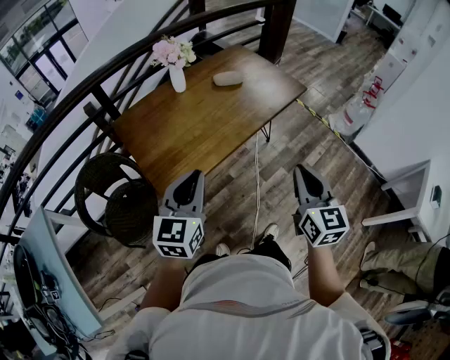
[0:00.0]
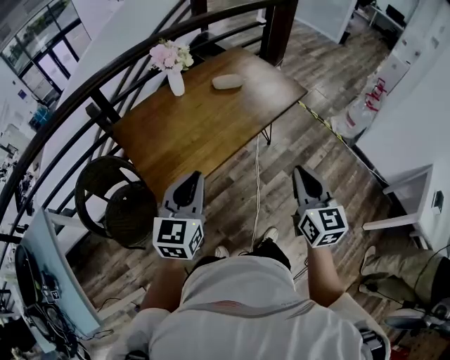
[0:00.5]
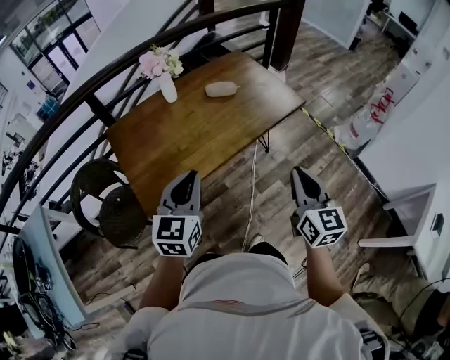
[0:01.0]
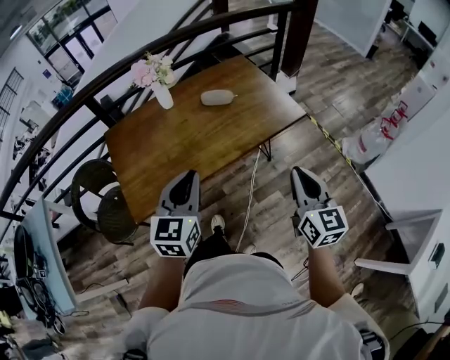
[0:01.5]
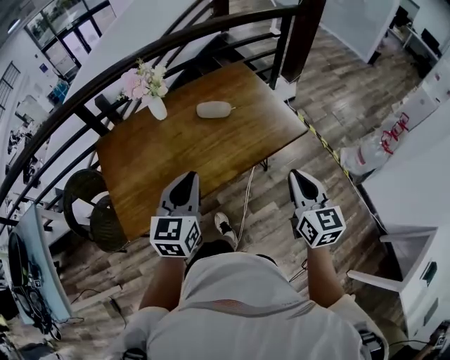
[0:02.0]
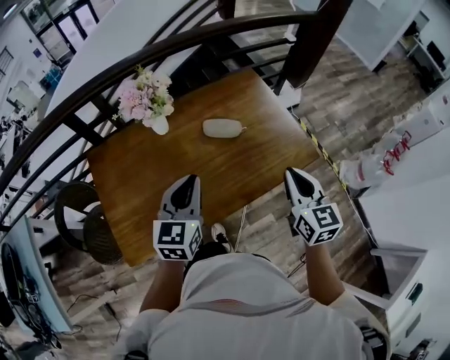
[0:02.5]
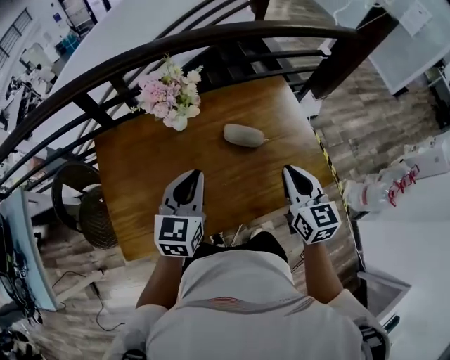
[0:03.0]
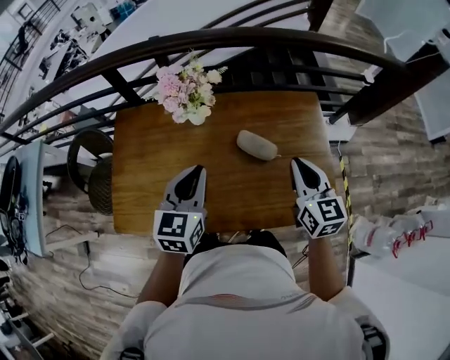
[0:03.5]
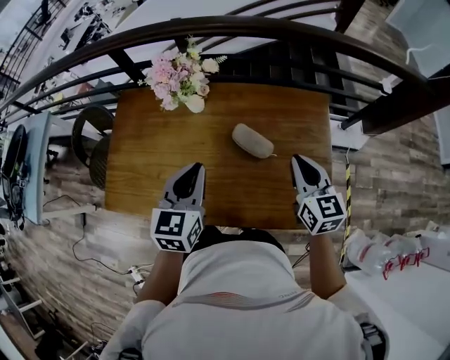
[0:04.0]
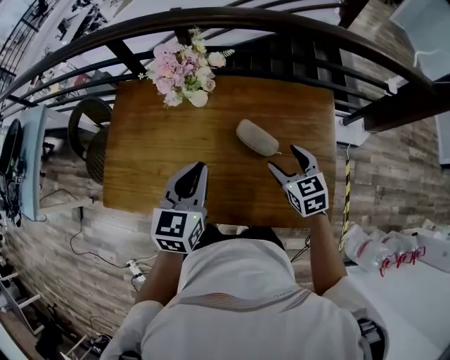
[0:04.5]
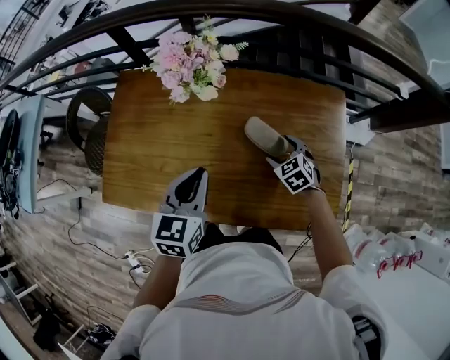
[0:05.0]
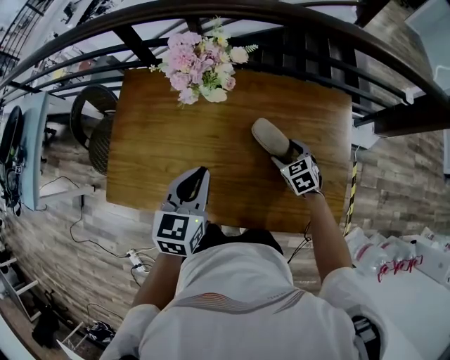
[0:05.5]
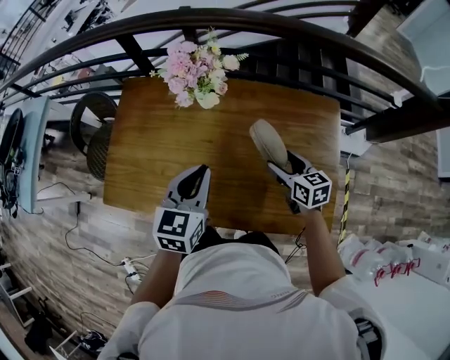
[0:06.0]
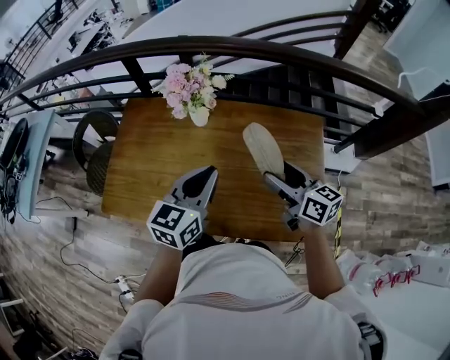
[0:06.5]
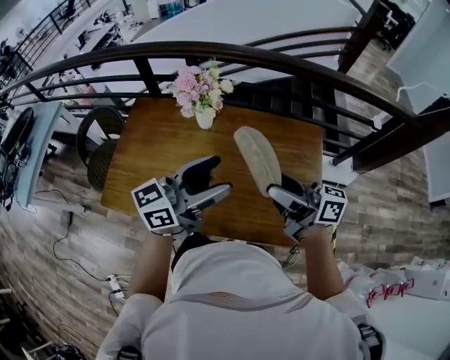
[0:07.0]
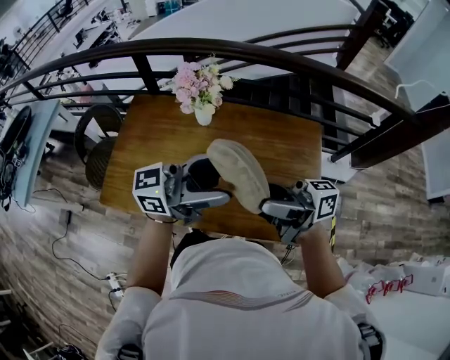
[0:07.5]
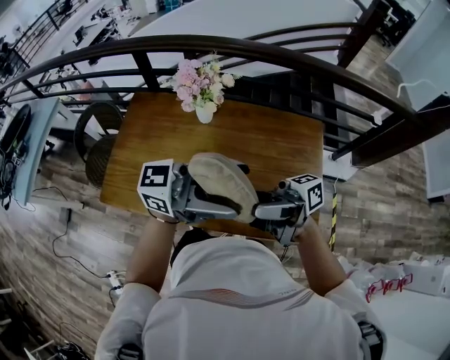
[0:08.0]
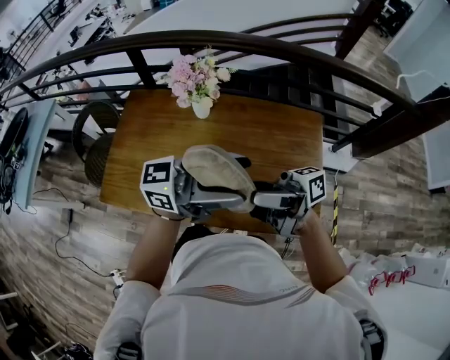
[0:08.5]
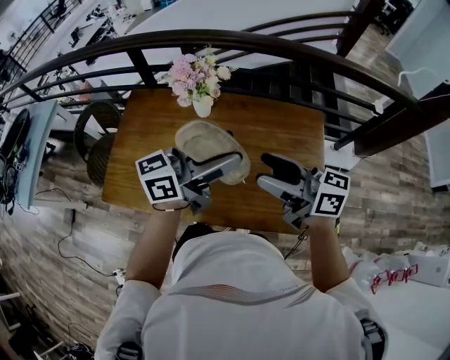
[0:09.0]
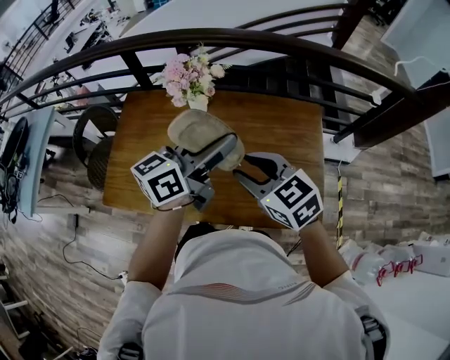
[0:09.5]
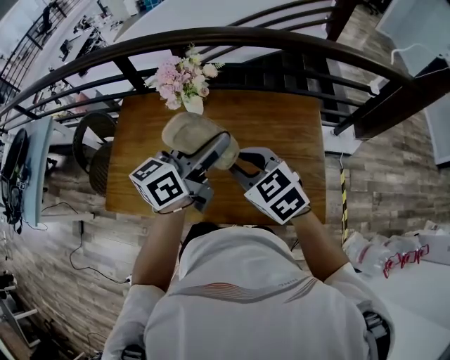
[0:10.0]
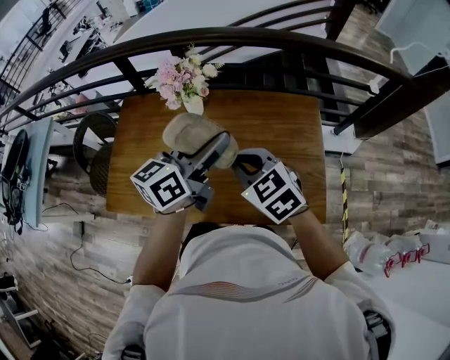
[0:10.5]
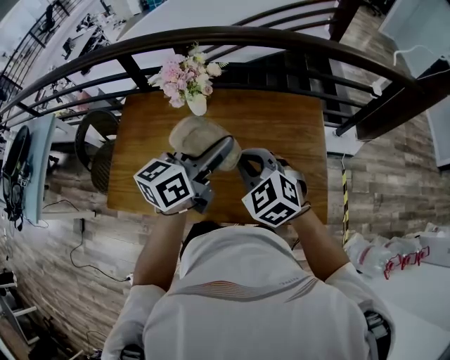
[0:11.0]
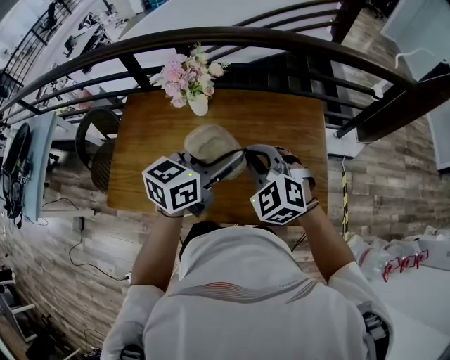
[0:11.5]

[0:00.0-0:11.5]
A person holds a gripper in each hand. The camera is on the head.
0:00.0 to 0:02.0: Both grippers travel together forward and to the right, roughly 30 cm.
0:02.0 to 0:04.0: The left gripper changes place by roughly 25 cm, and swivels roughly 30 degrees; the right gripper changes place by some 40 cm, and turns by some 40 degrees.
0:04.0 to 0:06.0: The right gripper shifts roughly 15 cm downward and to the left, swivels some 20 degrees, and opens up.
0:06.0 to 0:07.5: The right gripper goes about 25 cm upward, and points its fingers about 50 degrees further upward. The left gripper shifts some 15 cm upward, points its fingers approximately 50 degrees further upward, and opens its fingers.
0:07.5 to 0:09.5: The left gripper shifts by roughly 10 cm, and changes its angle by approximately 30 degrees. The right gripper heads downward, covering some 5 cm, angles its fingers downward, by roughly 50 degrees, and closes.
0:09.5 to 0:11.5: The left gripper shifts by some 5 cm, and changes its angle by approximately 20 degrees; the right gripper turns by some 40 degrees, and closes up.

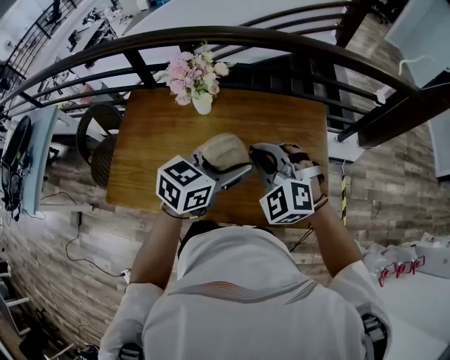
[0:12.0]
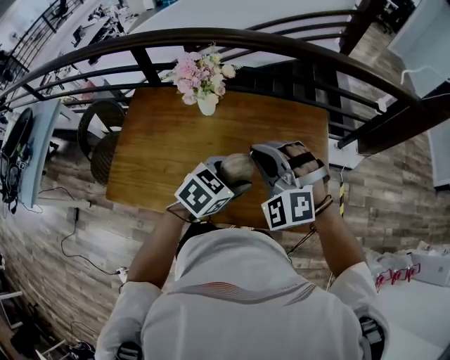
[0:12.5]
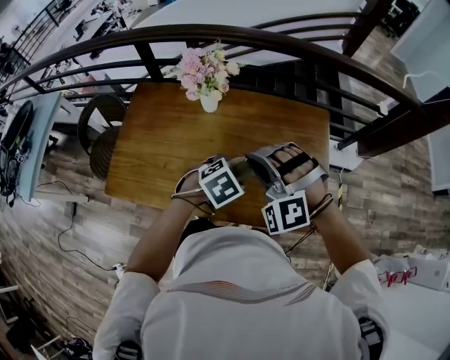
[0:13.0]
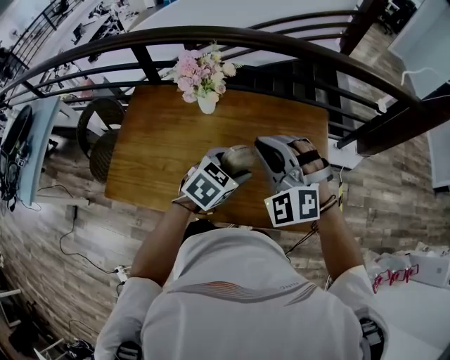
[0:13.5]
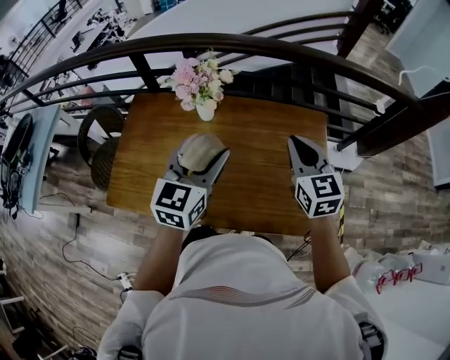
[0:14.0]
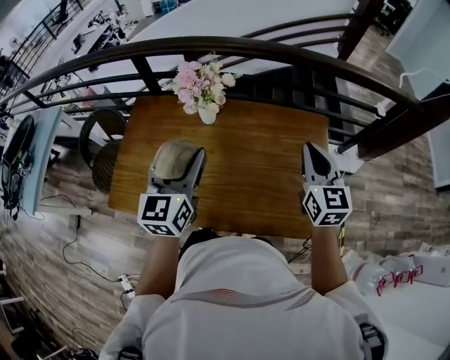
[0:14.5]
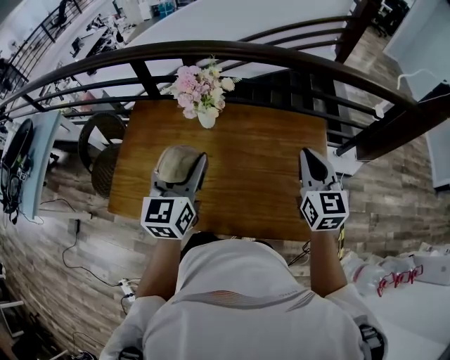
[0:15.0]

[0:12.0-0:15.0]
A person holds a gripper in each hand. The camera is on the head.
0:12.0 to 0:13.5: The left gripper goes some 10 cm downward, and changes its angle by approximately 20 degrees.
0:13.5 to 0:15.0: The left gripper shifts some 20 cm to the left and upward, and tips its fingers upward by about 30 degrees; the right gripper goes about 15 cm to the right, and twists approximately 60 degrees clockwise, seen from behind.

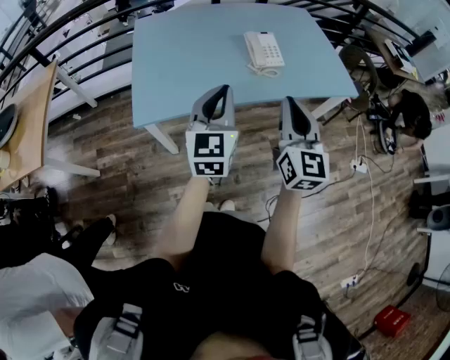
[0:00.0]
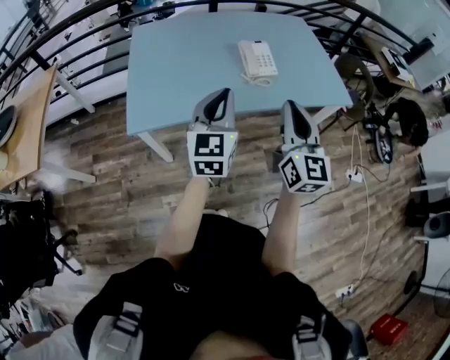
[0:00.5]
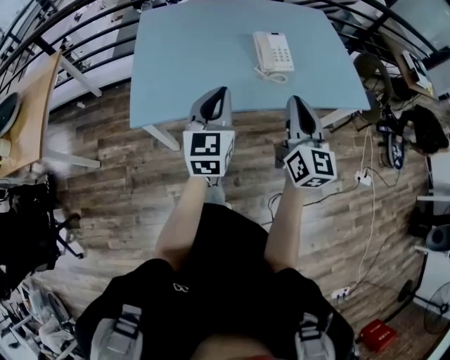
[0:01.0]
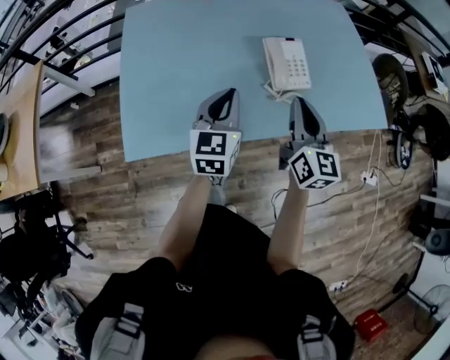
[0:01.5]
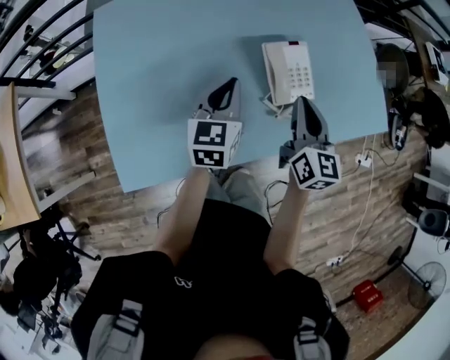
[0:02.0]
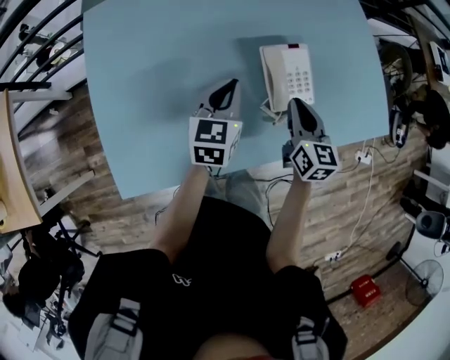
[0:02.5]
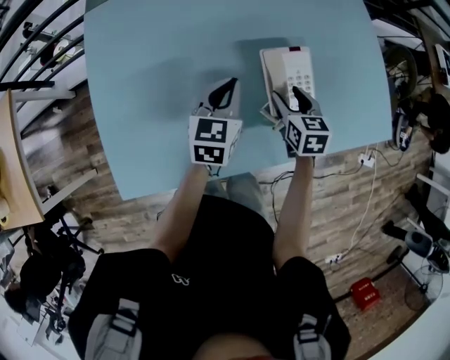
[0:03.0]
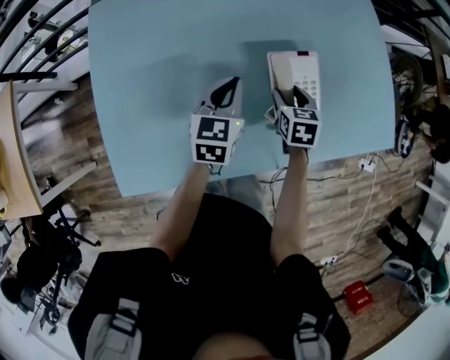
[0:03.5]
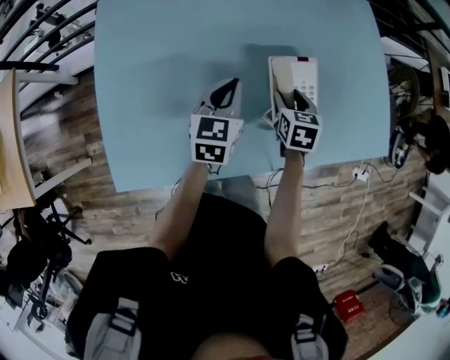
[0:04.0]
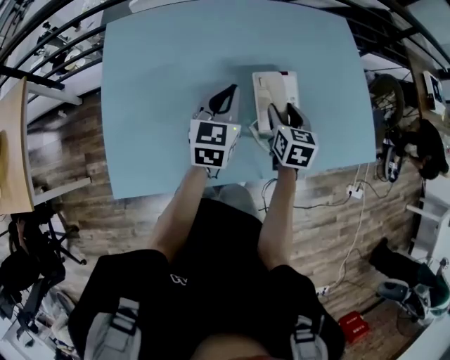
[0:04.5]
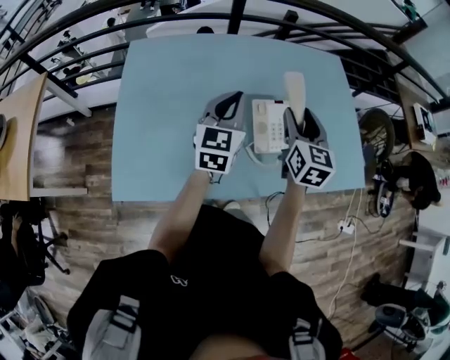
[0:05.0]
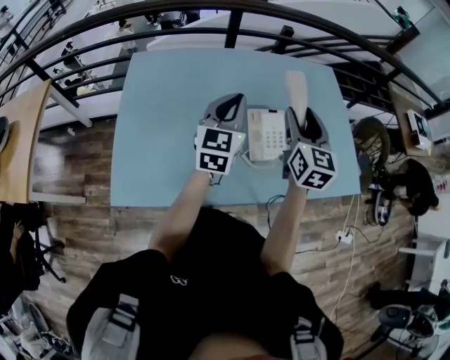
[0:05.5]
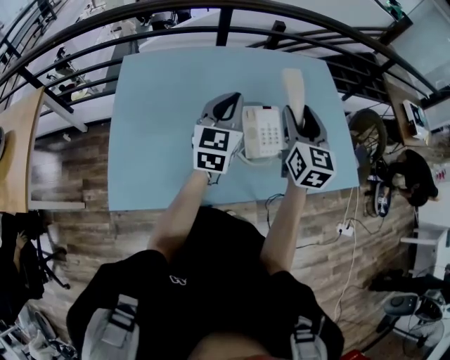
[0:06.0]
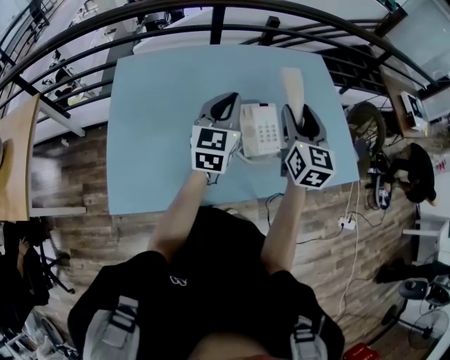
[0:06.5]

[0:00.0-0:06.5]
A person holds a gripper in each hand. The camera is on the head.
0:00.0 to 0:02.0: The two grippers travel together, forward, some 40 cm. The left gripper travels downward by about 15 cm, and swivels roughly 20 degrees. The right gripper turns by about 20 degrees.
0:02.0 to 0:04.5: The left gripper ends up about 5 cm from where it was. The right gripper heads forward and downward, covering approximately 10 cm, turns by some 20 degrees, and opens up.
0:04.5 to 0:06.5: The right gripper heads upward, covering roughly 20 cm, and swivels about 30 degrees. The left gripper heads upward, covering some 10 cm.

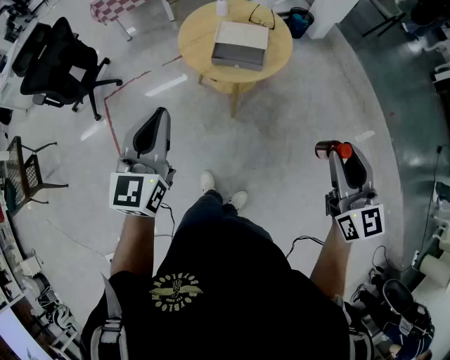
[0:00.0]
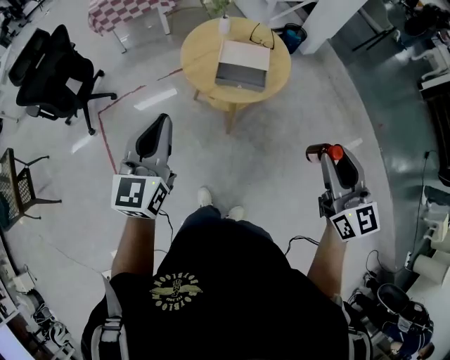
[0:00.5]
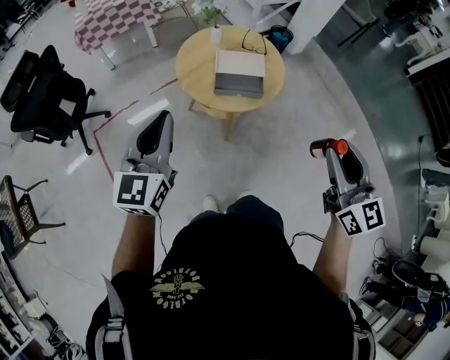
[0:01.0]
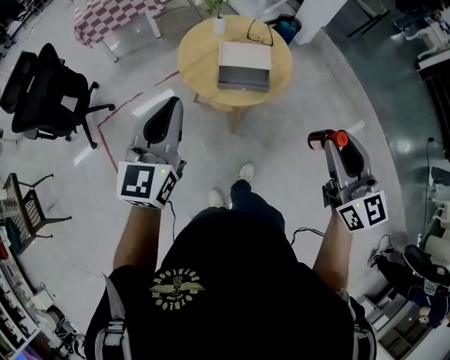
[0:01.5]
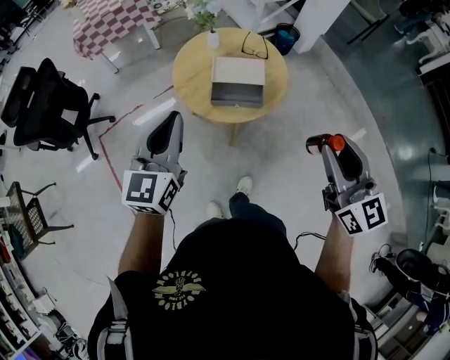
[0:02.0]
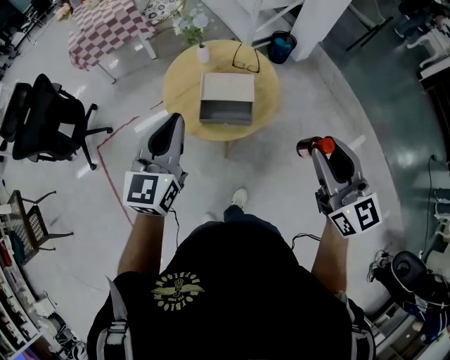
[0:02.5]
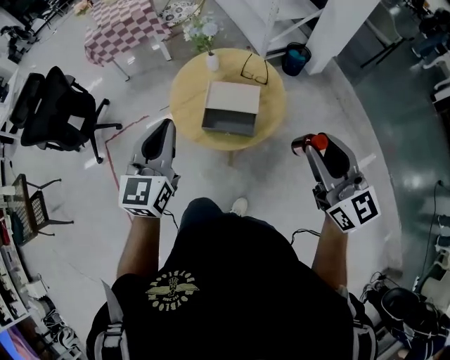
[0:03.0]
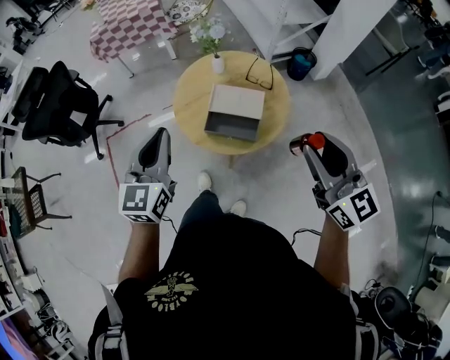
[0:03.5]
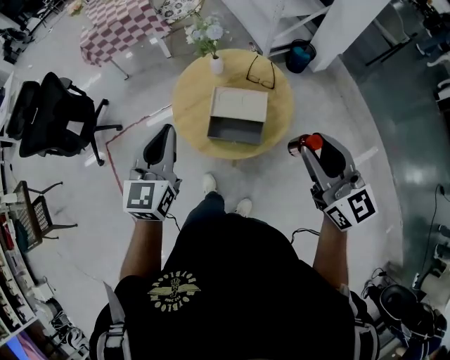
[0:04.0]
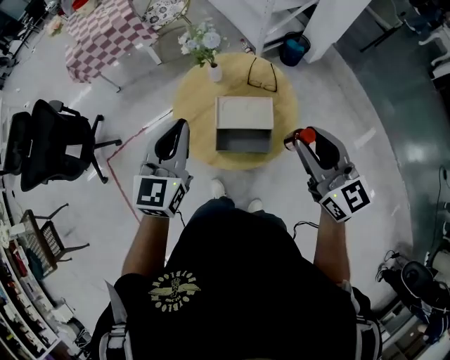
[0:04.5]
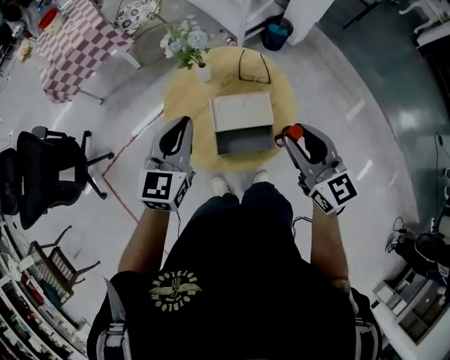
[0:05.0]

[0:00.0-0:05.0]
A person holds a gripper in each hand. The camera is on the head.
0:00.0 to 0:02.5: Both grippers move forward, approximately 25 cm.
0:02.5 to 0:05.0: The left gripper heads forward, covering about 25 cm, while the right gripper shifts some 25 cm forward and downward.
